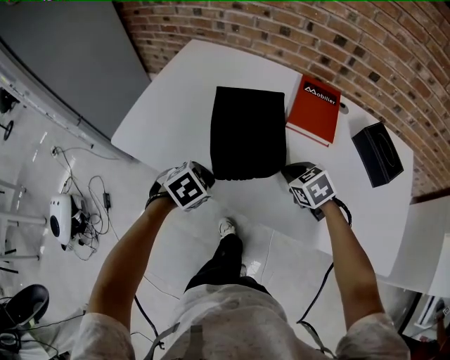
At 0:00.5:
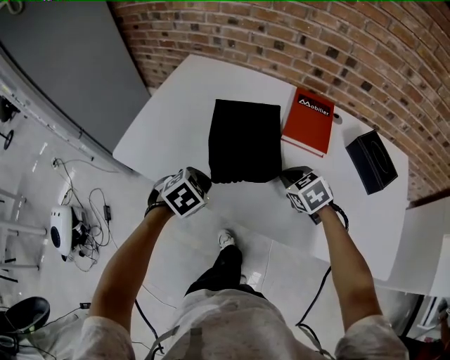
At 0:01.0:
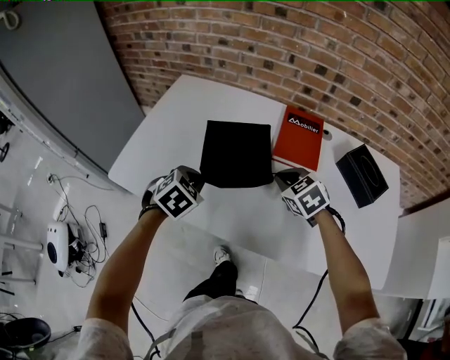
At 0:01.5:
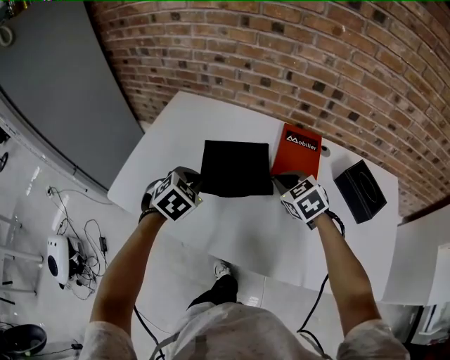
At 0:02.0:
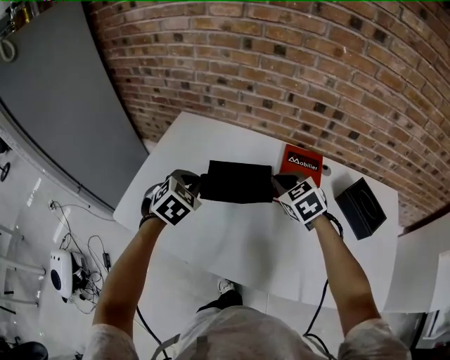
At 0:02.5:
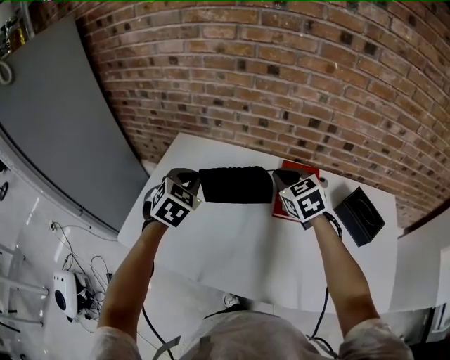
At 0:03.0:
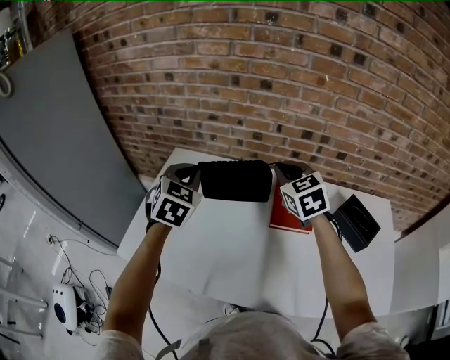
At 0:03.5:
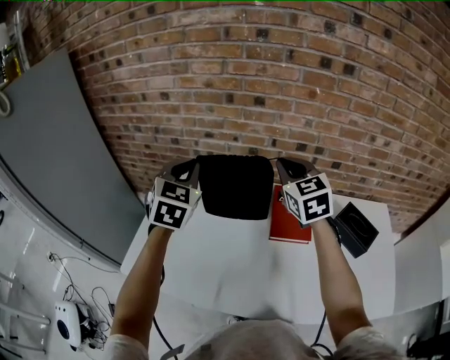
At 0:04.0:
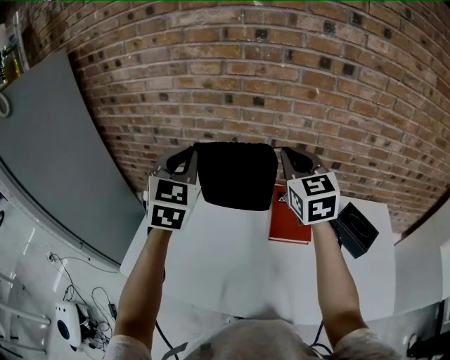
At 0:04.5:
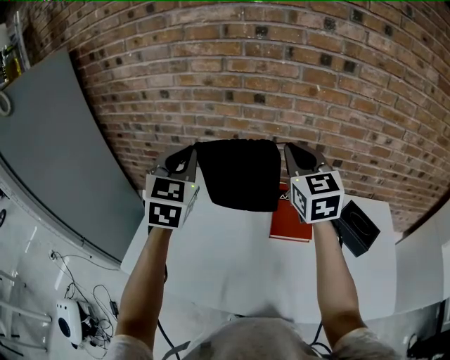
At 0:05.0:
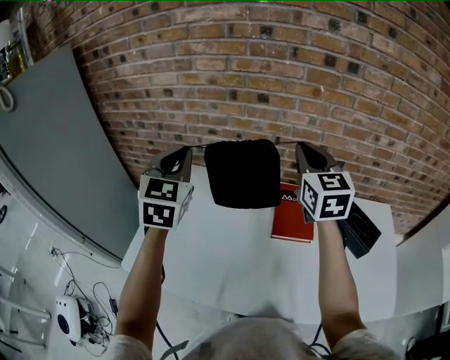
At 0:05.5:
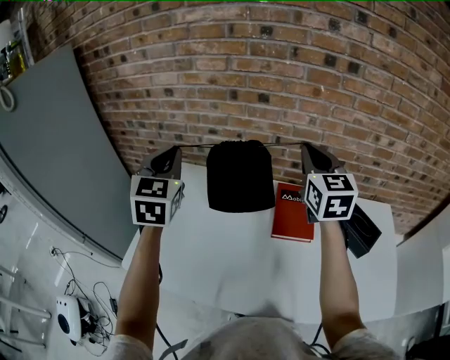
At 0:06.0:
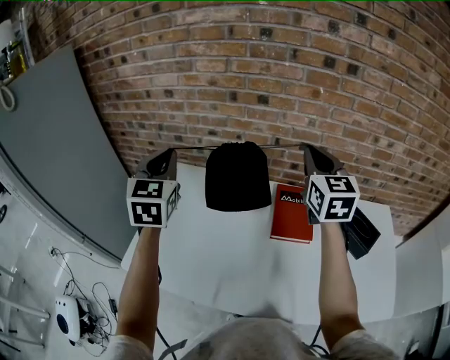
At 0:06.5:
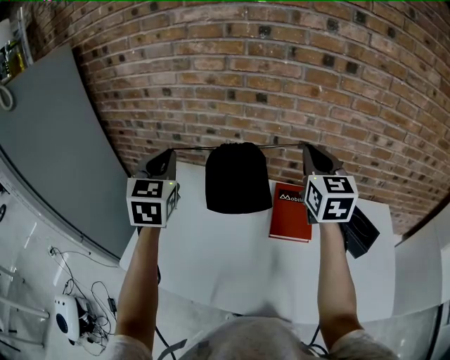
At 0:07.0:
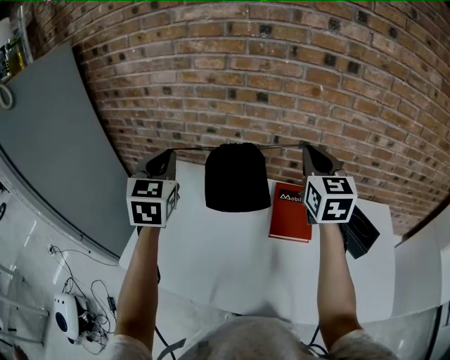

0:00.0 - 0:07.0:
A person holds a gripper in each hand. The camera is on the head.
0:00.0 - 0:02.0: Both grippers move forward and upward, approximately 25 cm. The left gripper rotates about 30 degrees.
0:02.0 - 0:03.5: The left gripper goes roughly 25 cm upward and forward, and points its fingers about 30 degrees further upward; the right gripper moves upward, some 20 cm, and turns by approximately 30 degrees.
0:03.5 - 0:05.0: The right gripper moves upward, some 5 cm; the left gripper changes place by roughly 5 cm.
0:05.0 - 0:07.0: The grippers make only small movements.

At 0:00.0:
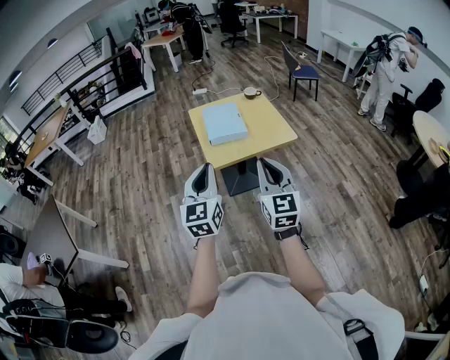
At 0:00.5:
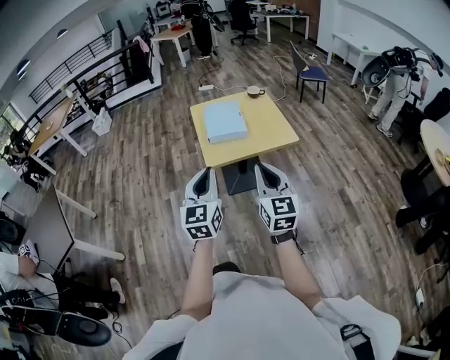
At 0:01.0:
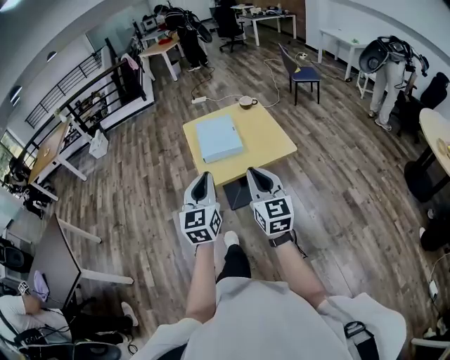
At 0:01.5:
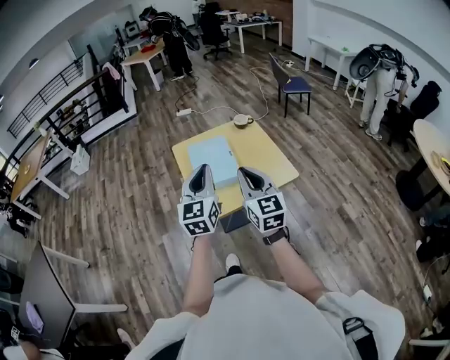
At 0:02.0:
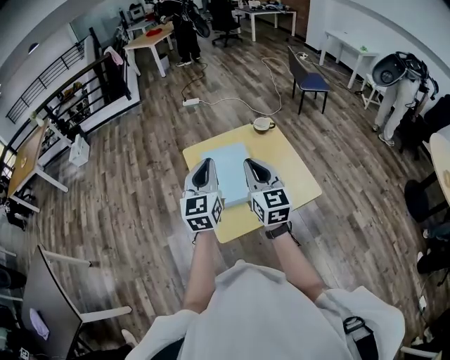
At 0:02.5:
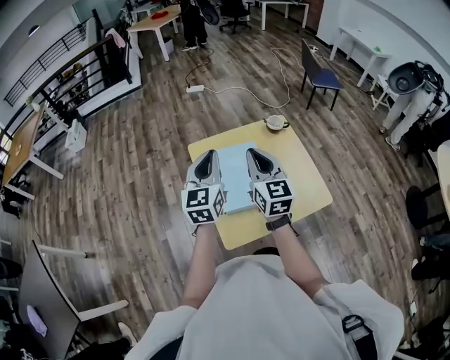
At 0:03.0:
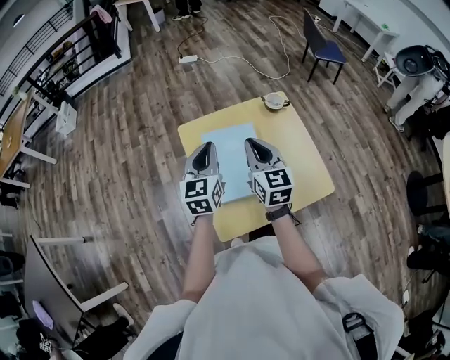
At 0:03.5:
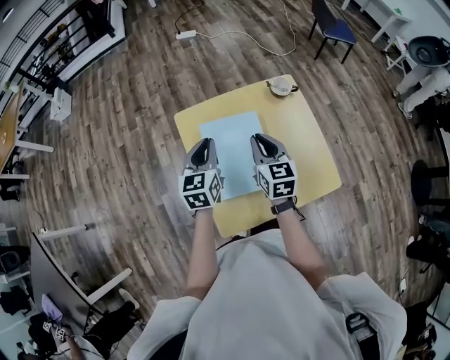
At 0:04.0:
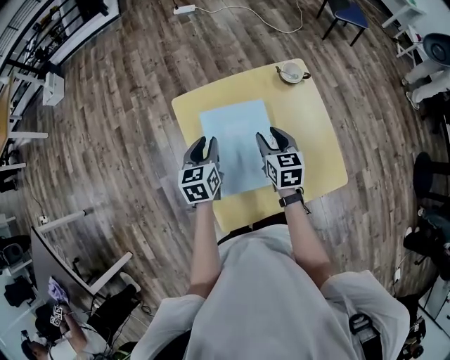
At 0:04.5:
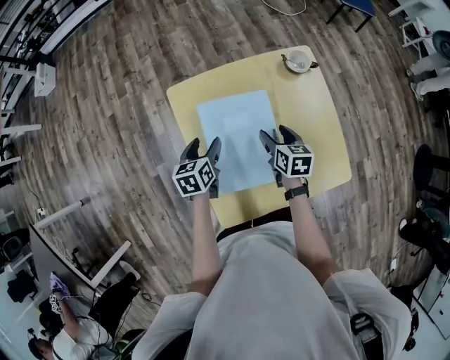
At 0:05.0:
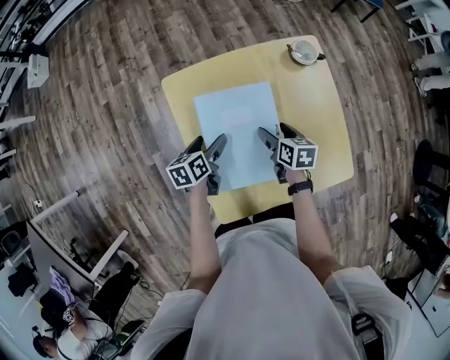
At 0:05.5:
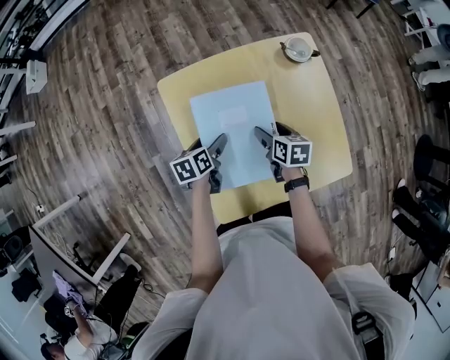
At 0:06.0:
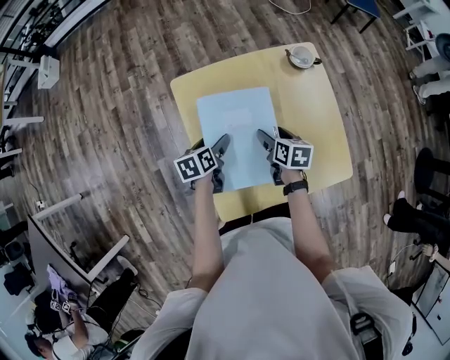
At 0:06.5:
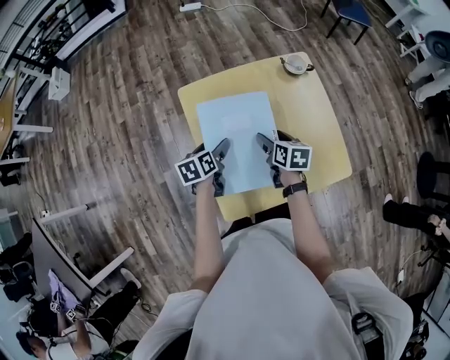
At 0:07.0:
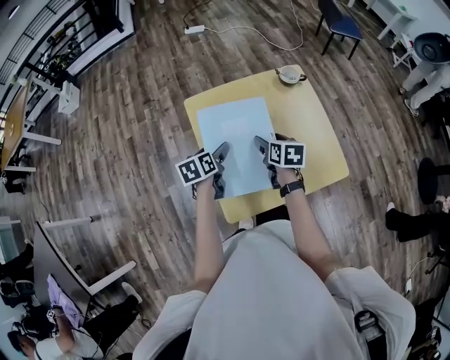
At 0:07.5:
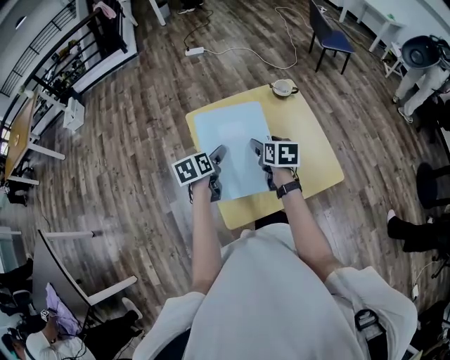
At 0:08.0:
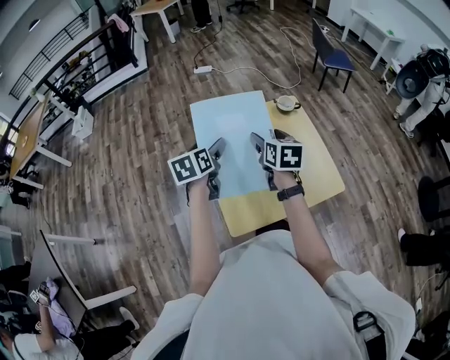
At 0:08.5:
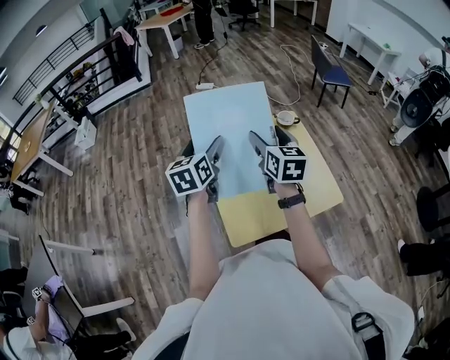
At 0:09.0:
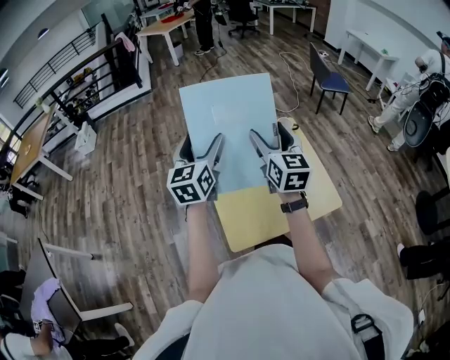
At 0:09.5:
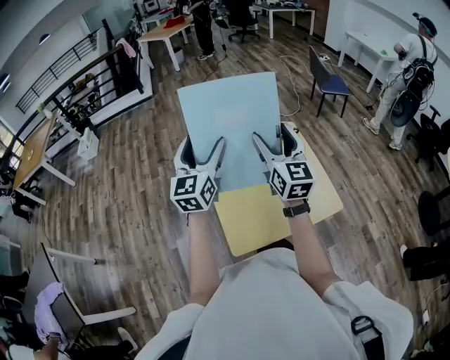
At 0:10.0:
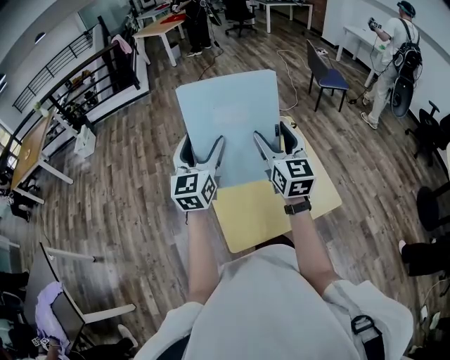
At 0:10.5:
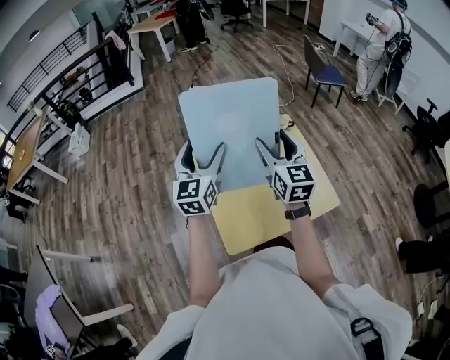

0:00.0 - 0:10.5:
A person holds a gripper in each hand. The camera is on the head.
0:00.0 - 0:02.0: Both grippers are carried forward, approximately 50 cm.
0:02.0 - 0:04.0: Both grippers travel together downward and forward, roughly 35 cm. The left gripper tilts its fingers some 30 degrees downward; the right gripper tilts its fingers roughly 30 degrees downward, and opens.
0:04.0 - 0:06.5: Both grippers travel together downward, about 5 cm. The left gripper rotates some 20 degrees, and opens up. The right gripper changes its angle by approximately 20 degrees, and opens.
0:06.5 - 0:08.5: Both grippers move upward, some 30 cm. The right gripper tilts its fingers approximately 30 degrees upward; the left gripper turns by approximately 40 degrees.
0:08.5 - 0:10.5: The left gripper turns by some 20 degrees.

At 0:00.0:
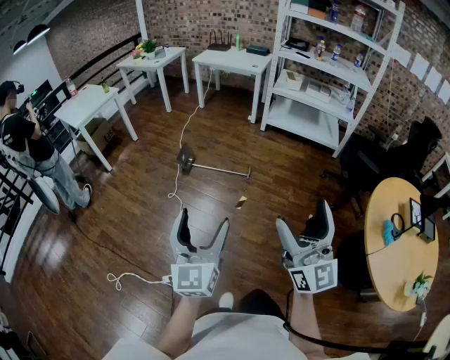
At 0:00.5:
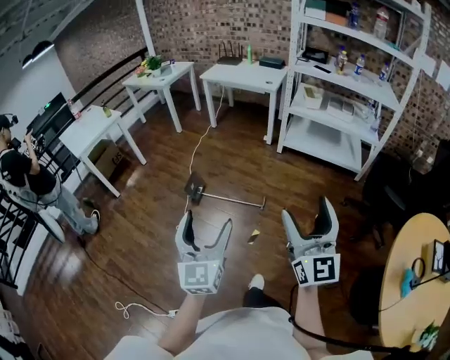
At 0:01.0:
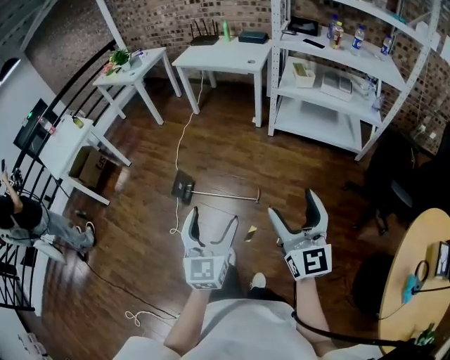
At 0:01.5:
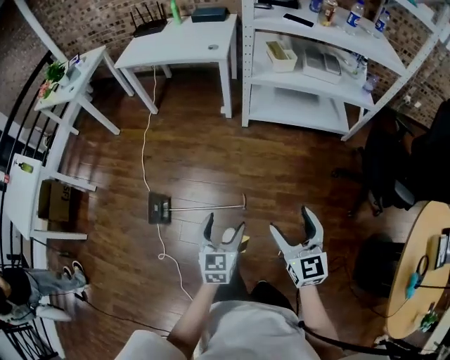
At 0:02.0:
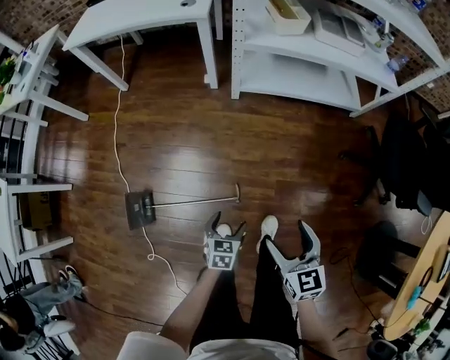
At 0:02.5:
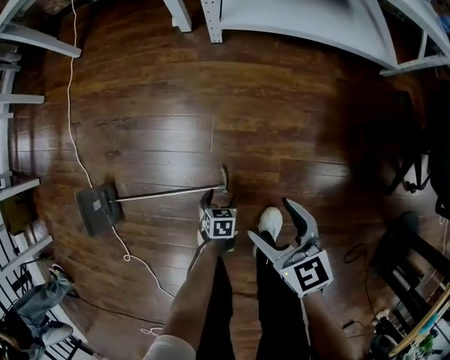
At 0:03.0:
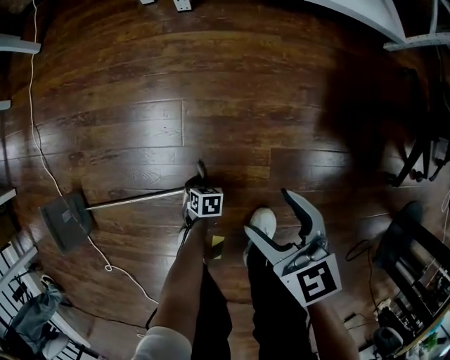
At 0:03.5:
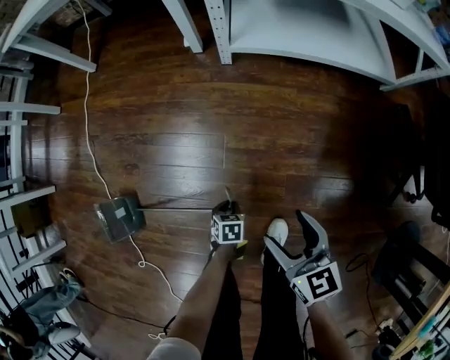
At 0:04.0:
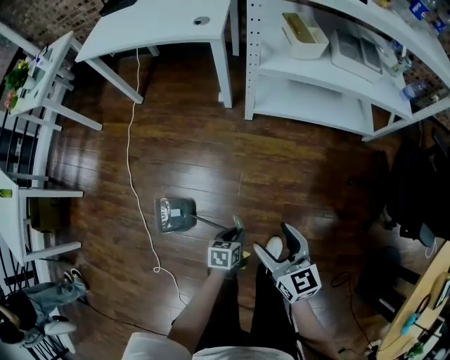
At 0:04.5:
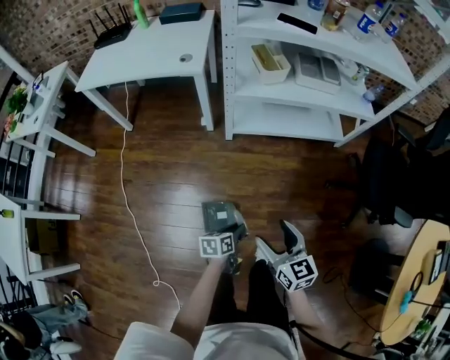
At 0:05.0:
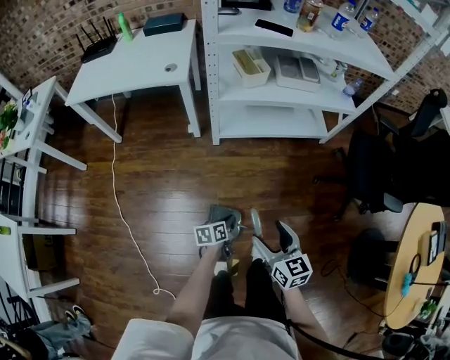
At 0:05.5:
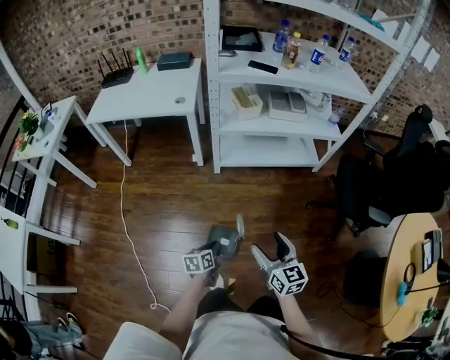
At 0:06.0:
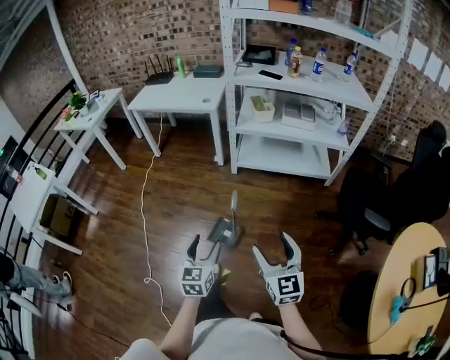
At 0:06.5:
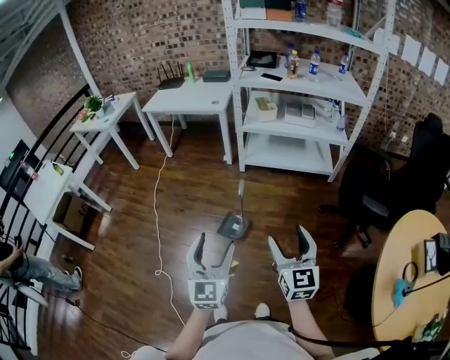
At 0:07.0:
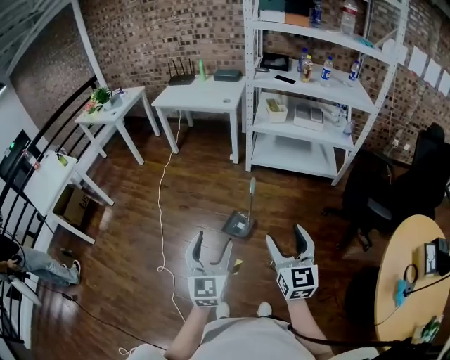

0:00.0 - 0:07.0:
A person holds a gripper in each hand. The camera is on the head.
0:00.0 - 0:02.0: The pair of grippers is taken some 80 cm. The left gripper tilts its fingers approximately 60 degrees downward, while the right gripper tips its fingers downward by roughly 60 degrees.
0:02.0 - 0:03.5: Both grippers travel together downward, some 25 cm. The left gripper rotates about 30 degrees, and closes its fingers.
0:03.5 - 0:05.0: The two grippers go roughly 35 cm upward. The left gripper tips its fingers upward by approximately 40 degrees.
0:05.0 - 0:07.0: The left gripper ends up some 60 cm from where it was, tilts its fingers about 30 degrees upward, and opens up; the right gripper moves about 50 cm, and swivels approximately 30 degrees.

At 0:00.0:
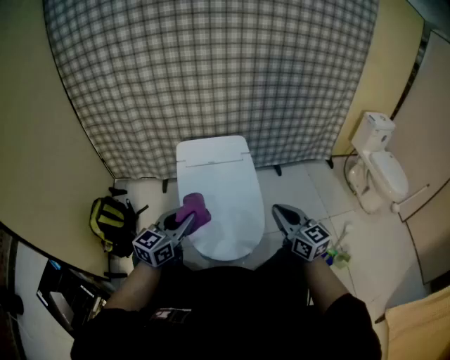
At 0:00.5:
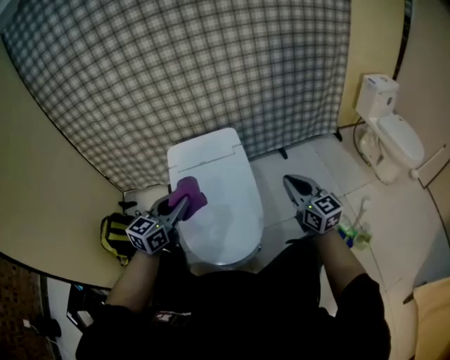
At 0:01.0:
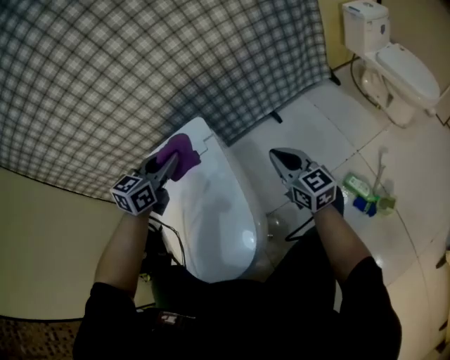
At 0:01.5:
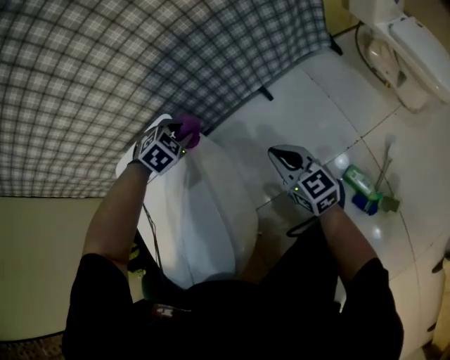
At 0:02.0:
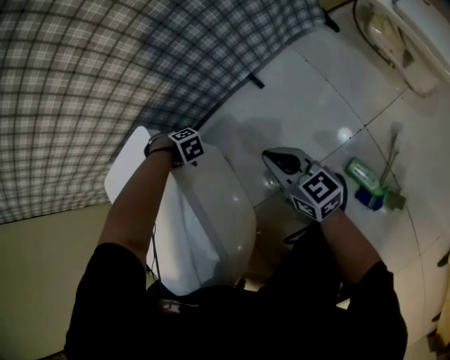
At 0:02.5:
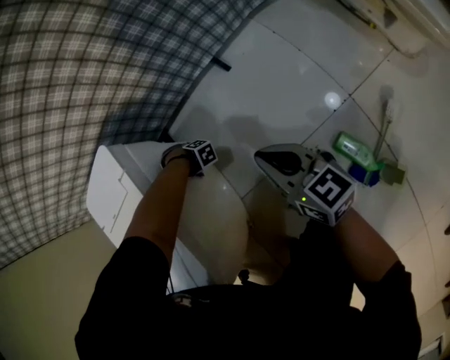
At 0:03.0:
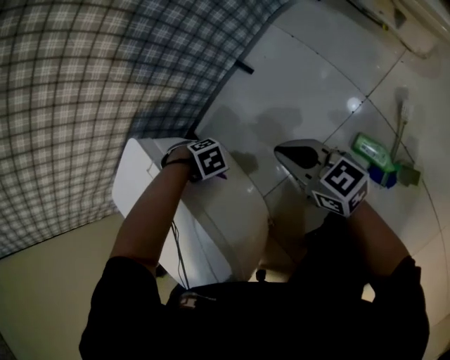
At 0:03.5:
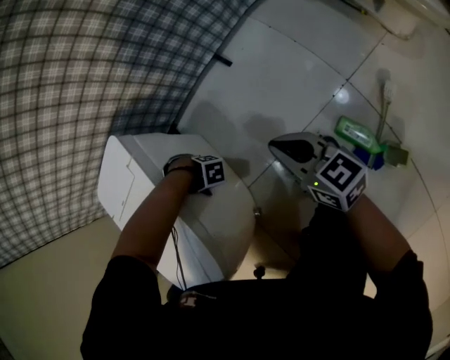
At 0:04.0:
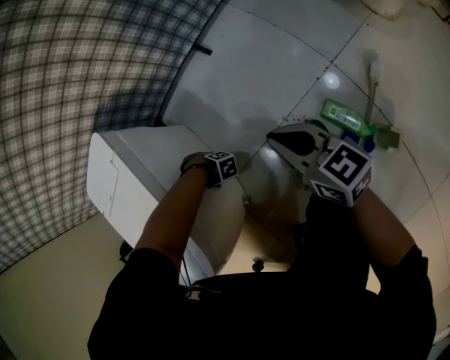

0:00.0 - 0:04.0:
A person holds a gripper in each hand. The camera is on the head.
0:00.0 - 0:02.0: The pair of grippers is taken roughly 50 cm. The right gripper swivels about 30 degrees, while the left gripper points its fingers roughly 60 degrees further downward.
0:02.0 - 0:04.0: The left gripper moves to the left, backward and downward, some 30 cm, and rotates some 30 degrees, while the right gripper goes approximately 20 cm backward.
